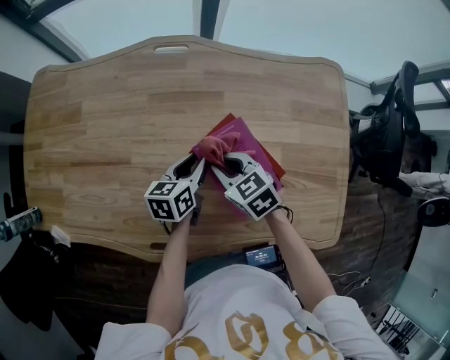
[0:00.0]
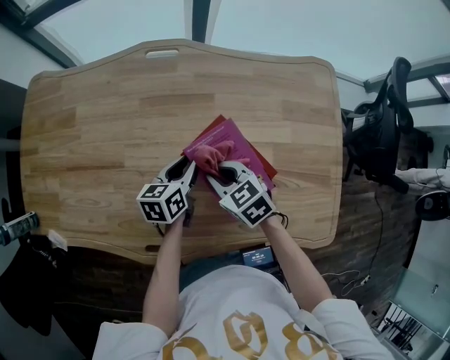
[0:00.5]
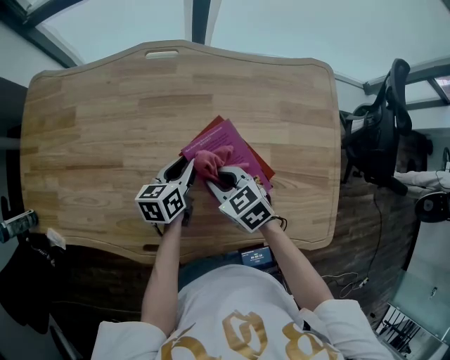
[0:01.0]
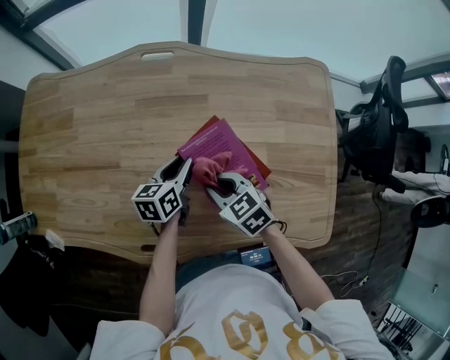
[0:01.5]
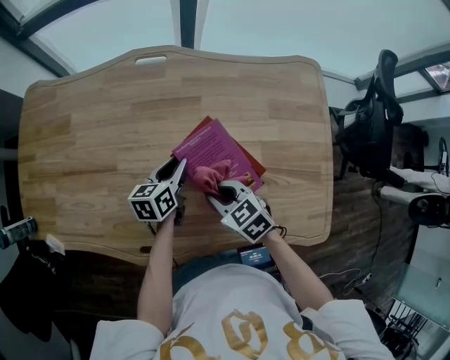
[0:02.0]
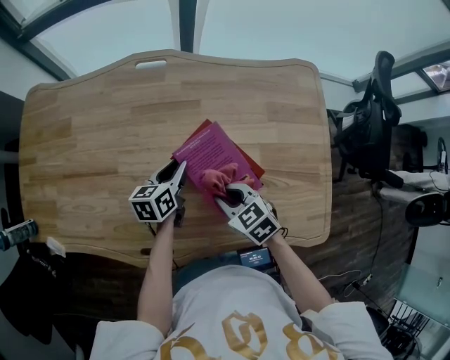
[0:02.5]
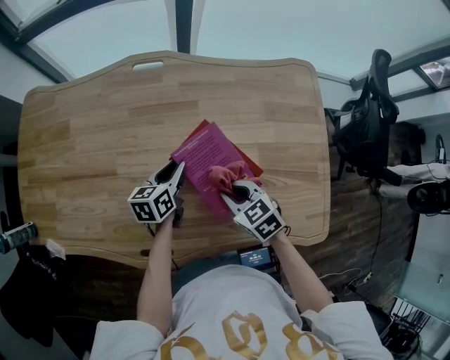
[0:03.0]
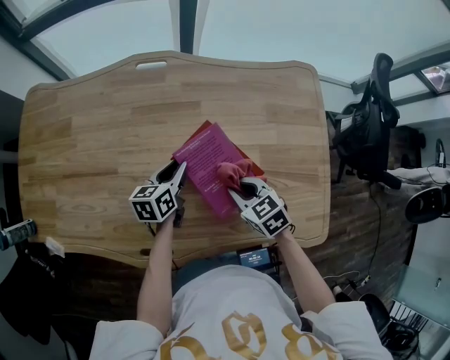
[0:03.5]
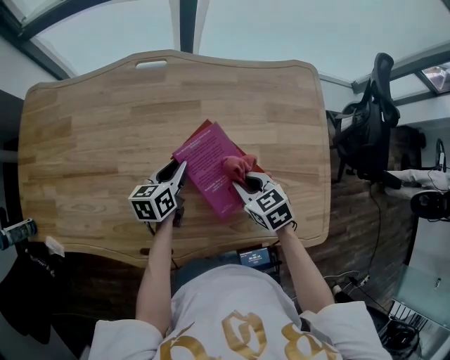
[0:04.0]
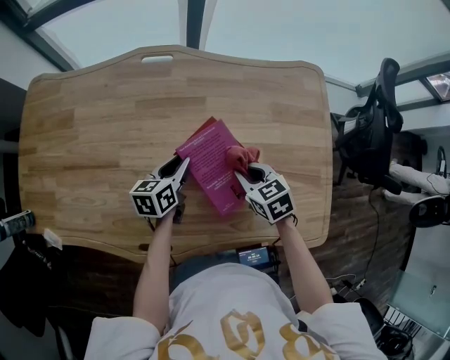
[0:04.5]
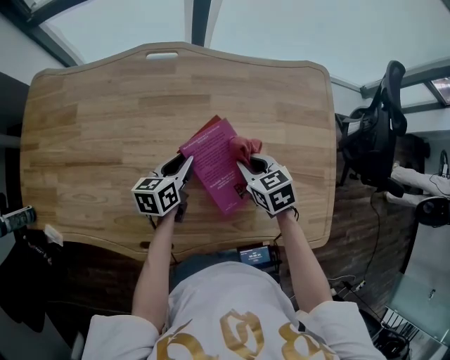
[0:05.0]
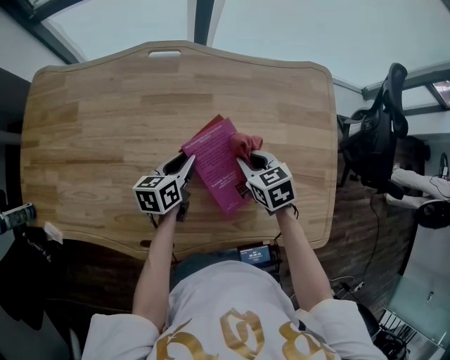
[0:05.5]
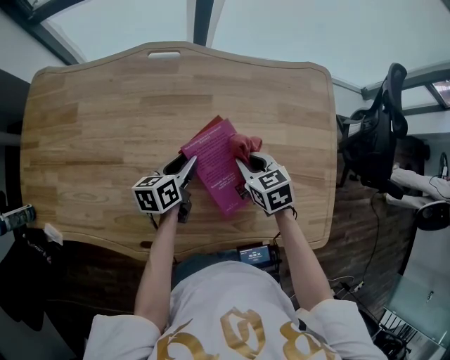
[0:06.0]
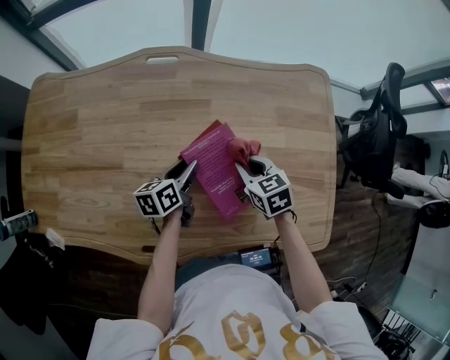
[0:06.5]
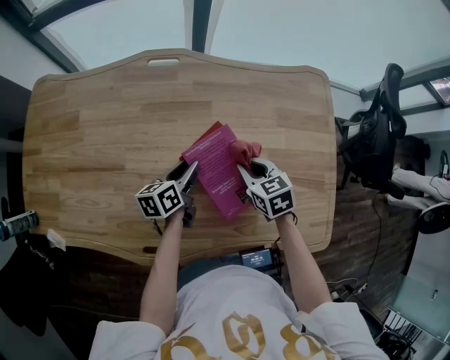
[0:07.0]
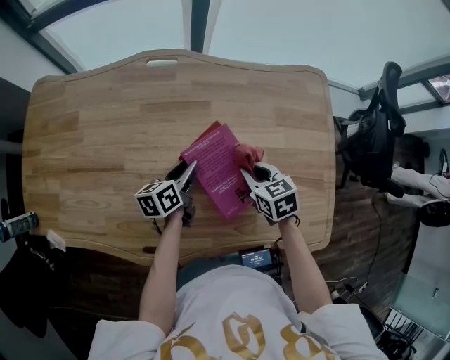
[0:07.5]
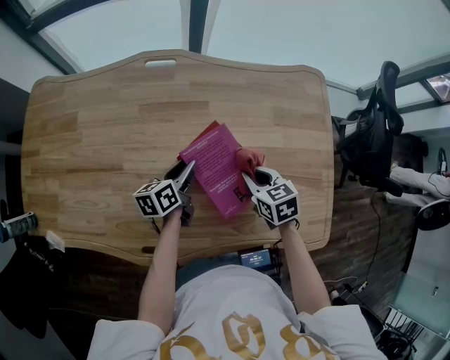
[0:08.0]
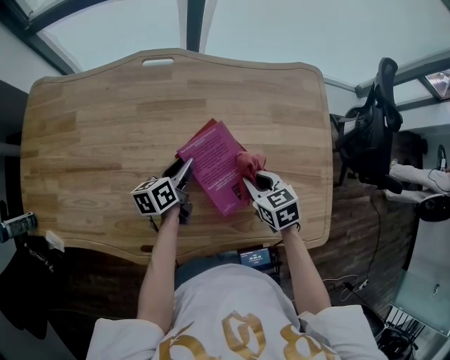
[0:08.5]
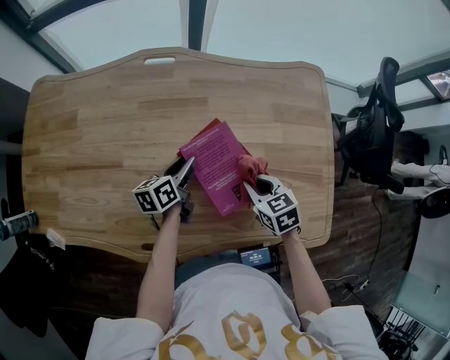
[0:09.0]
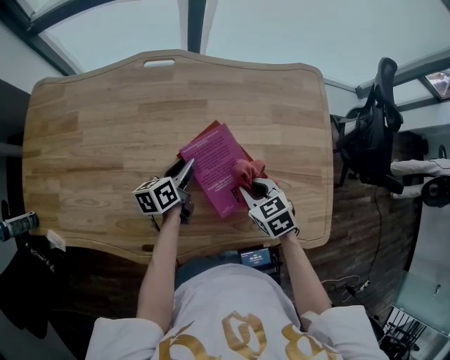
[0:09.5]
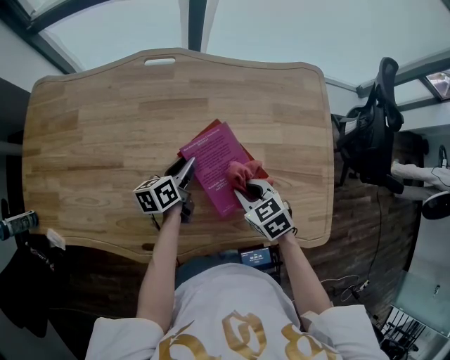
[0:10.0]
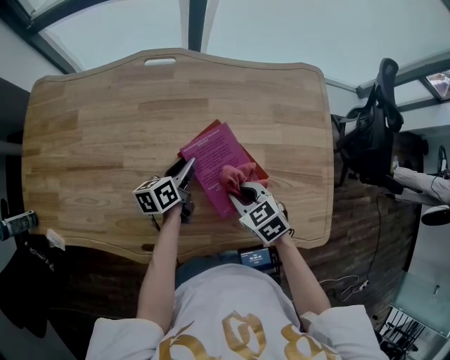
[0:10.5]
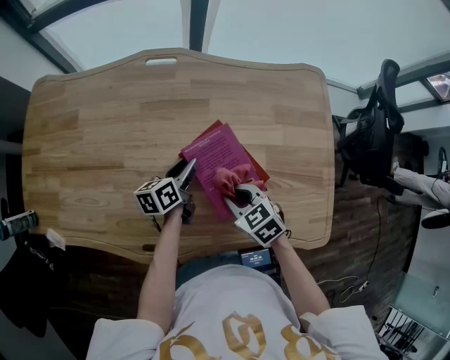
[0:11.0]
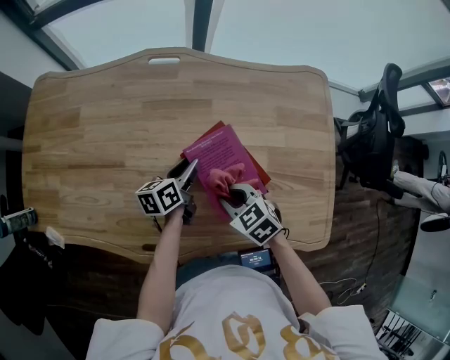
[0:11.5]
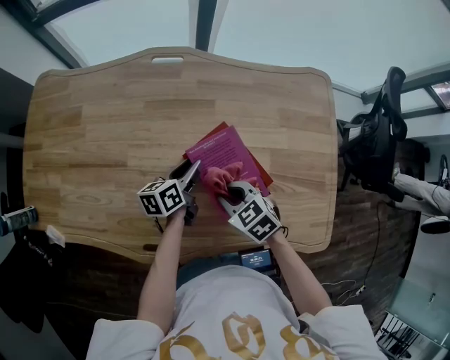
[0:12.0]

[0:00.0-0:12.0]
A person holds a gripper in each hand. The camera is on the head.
0:00.0 to 0:02.0: The right gripper shifts approximately 10 cm backward.
0:02.0 to 0:04.0: The right gripper heads to the right, covering roughly 10 cm.
0:04.0 to 0:06.0: The right gripper goes roughly 5 cm forward.
0:06.0 to 0:08.0: There are only small adjustments of the grippers.
0:08.0 to 0:10.0: The right gripper is displaced backward by approximately 5 cm.
0:10.0 to 0:12.0: The right gripper heads to the left, covering about 5 cm.

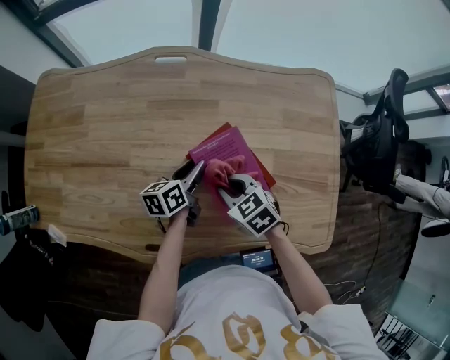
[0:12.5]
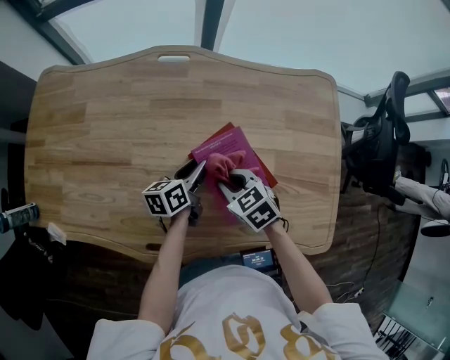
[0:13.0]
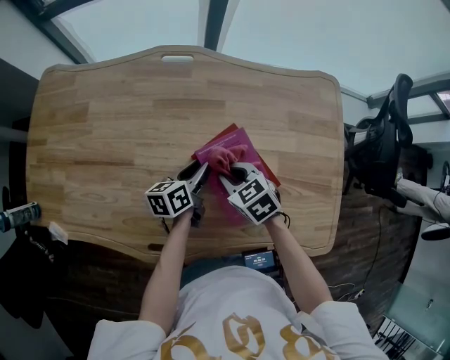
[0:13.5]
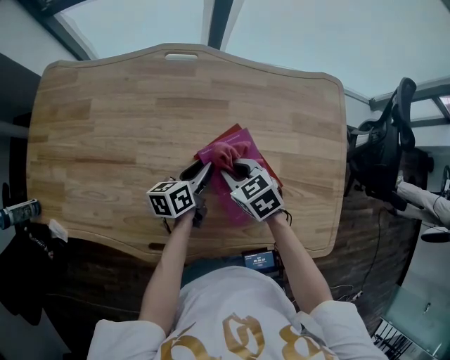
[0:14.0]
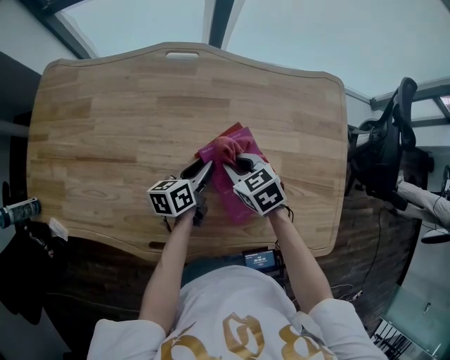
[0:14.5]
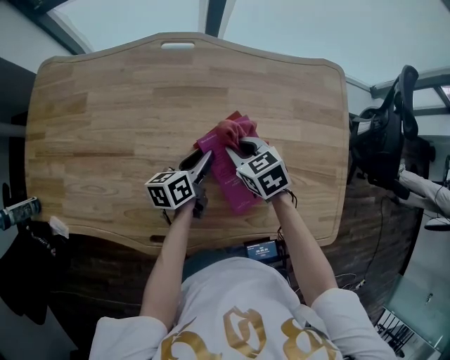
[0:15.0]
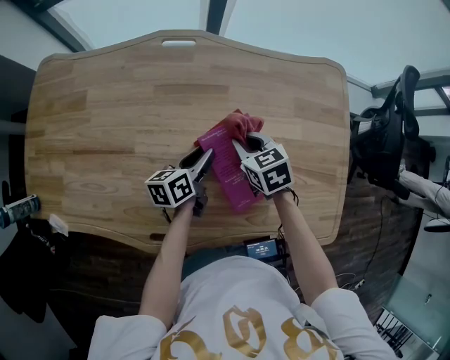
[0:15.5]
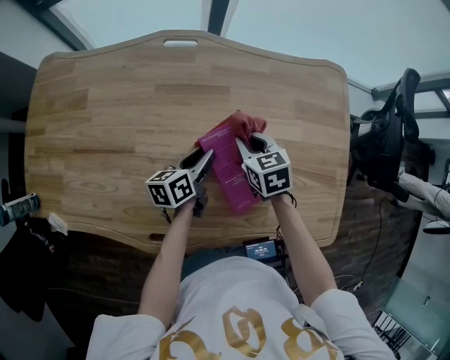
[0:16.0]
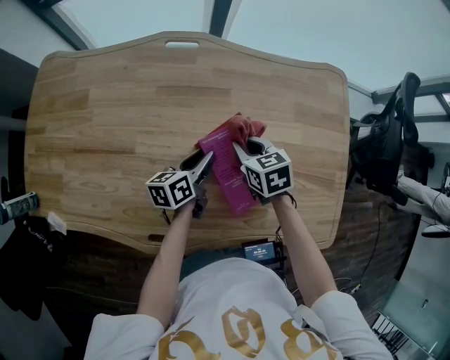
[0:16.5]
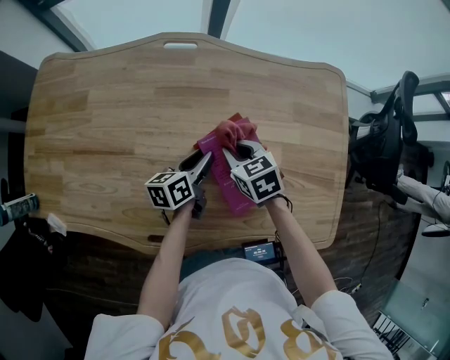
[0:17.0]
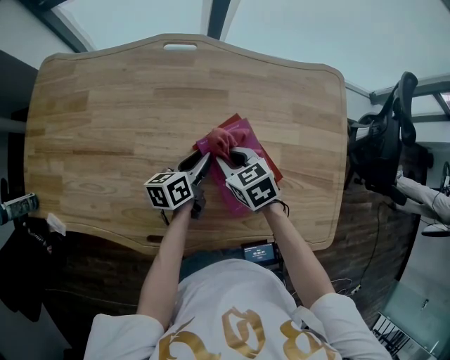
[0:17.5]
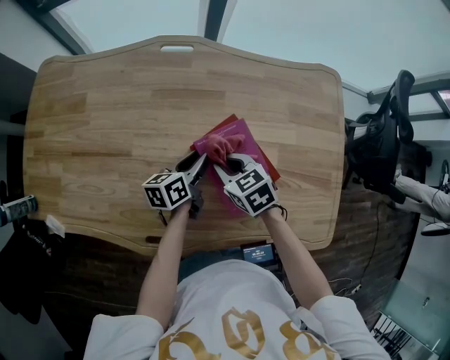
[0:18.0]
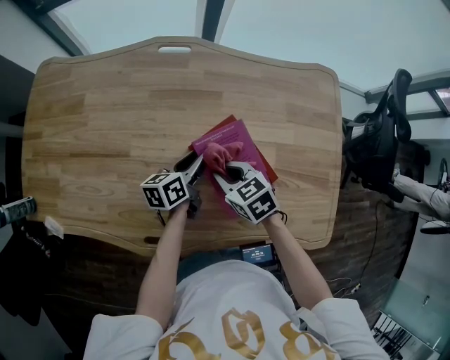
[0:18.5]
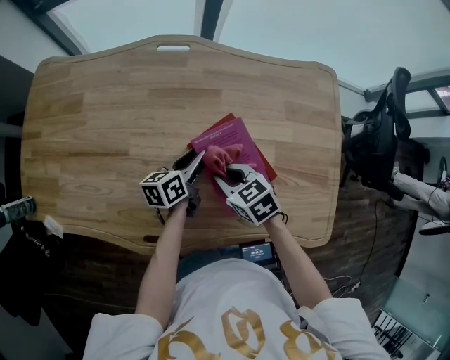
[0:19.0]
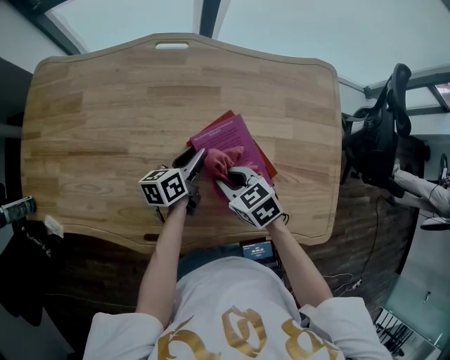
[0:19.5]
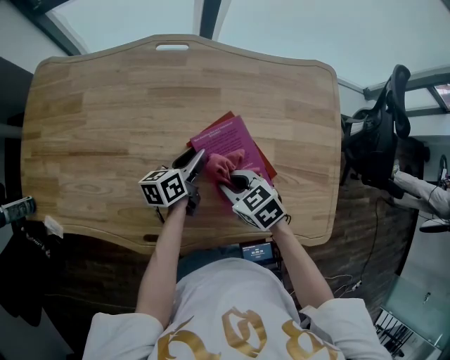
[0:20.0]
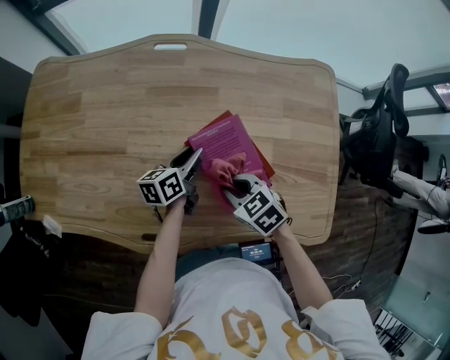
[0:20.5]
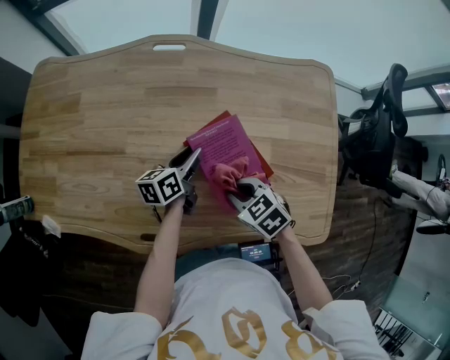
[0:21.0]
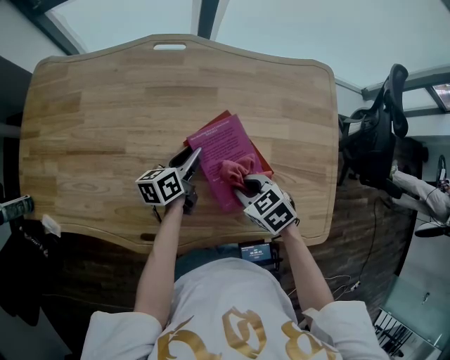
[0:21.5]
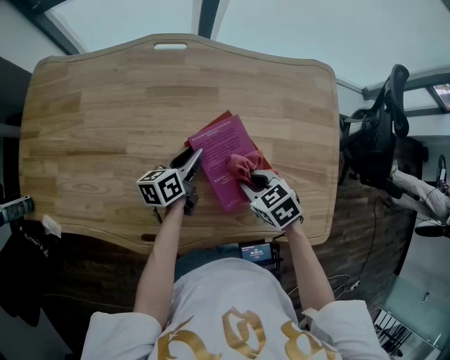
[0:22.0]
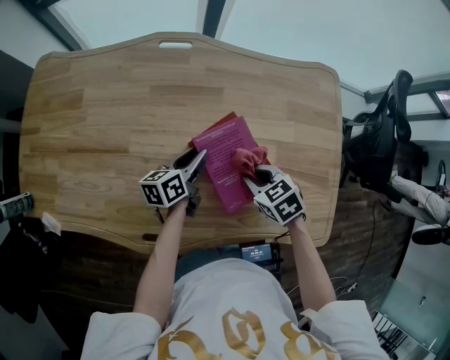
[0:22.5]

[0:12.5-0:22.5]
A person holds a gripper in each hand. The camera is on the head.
0:12.5 to 0:14.5: The right gripper travels forward by some 5 cm.
0:14.5 to 0:16.5: The grippers stay close to where they were, moving slightly.
0:16.5 to 0:18.5: The right gripper shifts some 5 cm backward.
0:18.5 to 0:20.5: The right gripper is displaced backward by about 5 cm.
0:20.5 to 0:22.5: The right gripper is displaced to the right by roughly 5 cm.

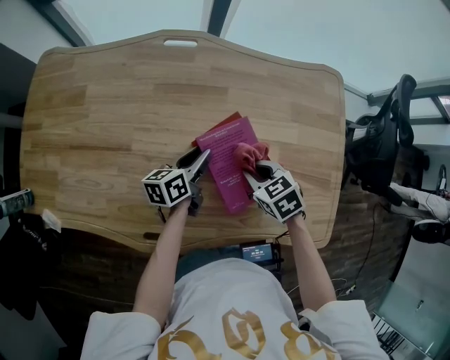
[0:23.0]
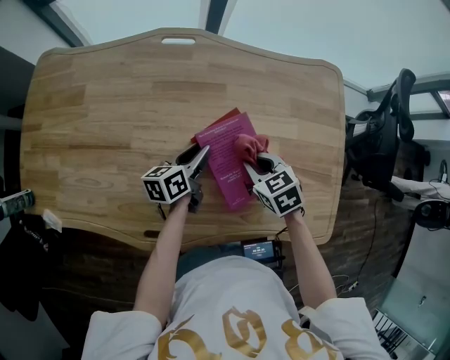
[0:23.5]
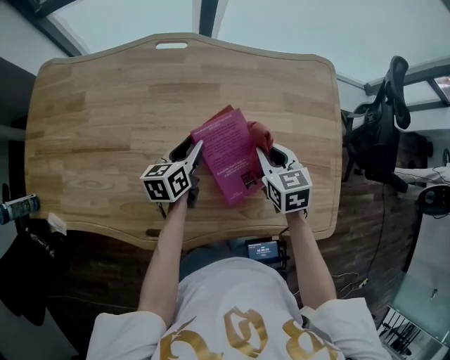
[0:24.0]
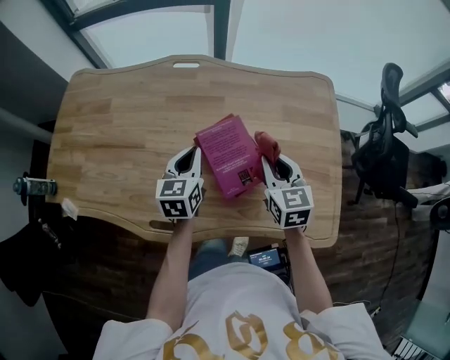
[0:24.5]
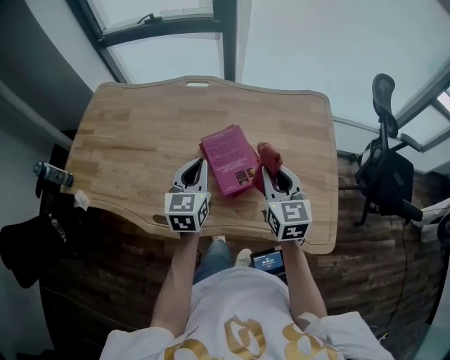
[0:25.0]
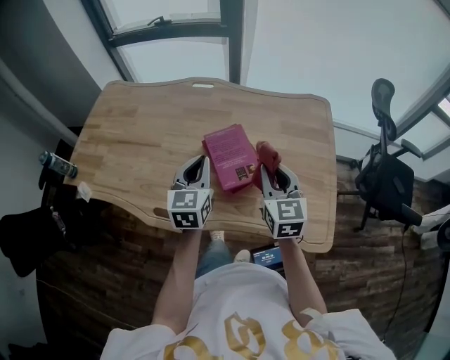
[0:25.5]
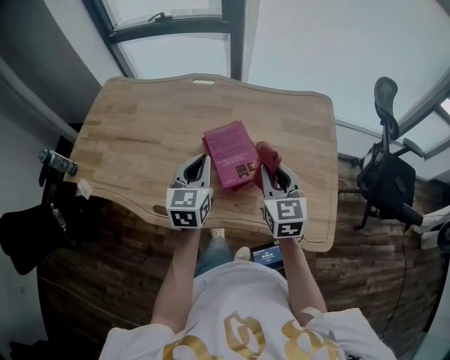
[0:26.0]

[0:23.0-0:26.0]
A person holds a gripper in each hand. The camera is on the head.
0:23.0 to 0:24.5: The right gripper shifts approximately 15 cm upward and to the right, and points its fingers approximately 30 degrees further upward. The left gripper goes some 10 cm upward, rotates roughly 40 degrees, and closes.
0:24.5 to 0:26.0: Both grippers move backward and upward, roughly 10 cm.

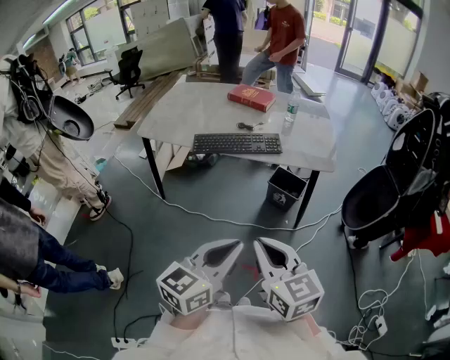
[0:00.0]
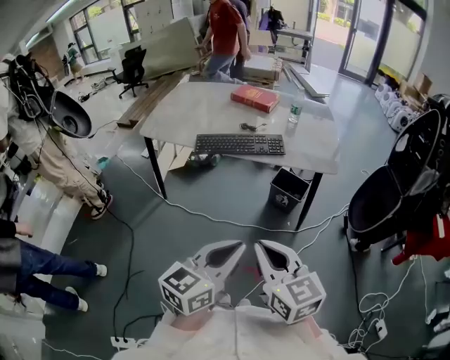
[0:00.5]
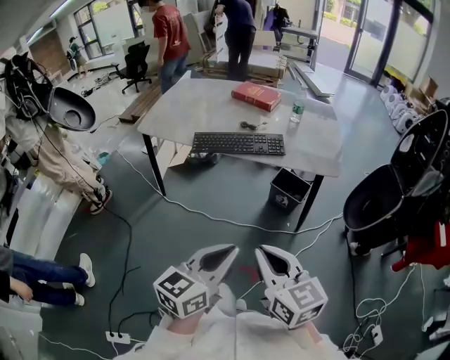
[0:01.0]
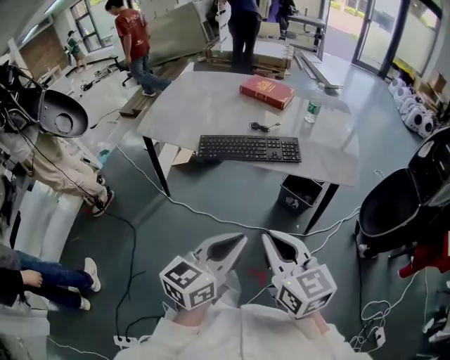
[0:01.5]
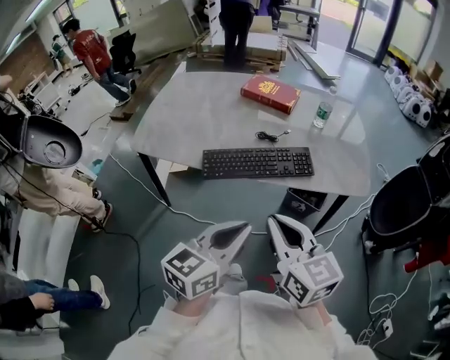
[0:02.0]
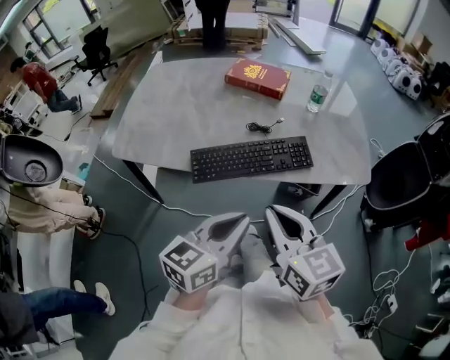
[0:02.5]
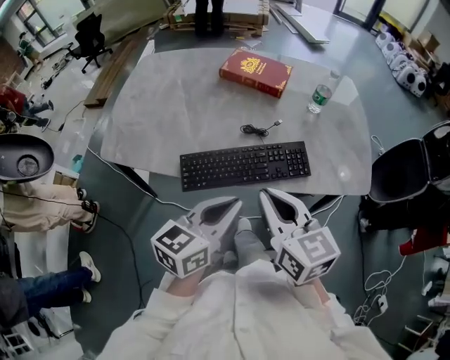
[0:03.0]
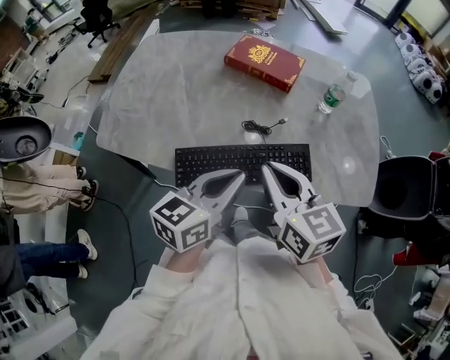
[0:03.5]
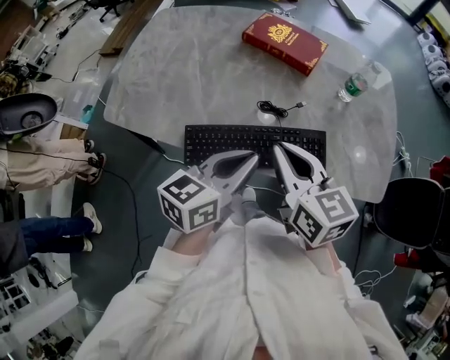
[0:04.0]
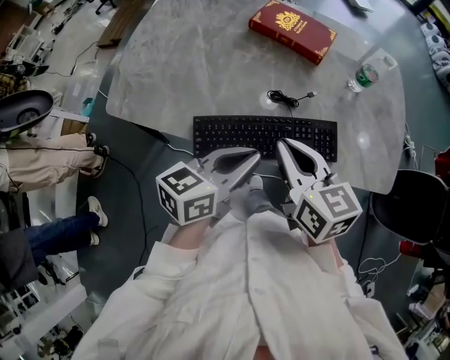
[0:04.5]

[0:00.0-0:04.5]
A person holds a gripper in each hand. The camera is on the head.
0:00.0 to 0:02.0: Both grippers travel together forward, some 25 cm.
0:02.0 to 0:04.5: The grippers both shift forward by about 25 cm.
